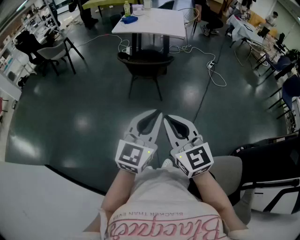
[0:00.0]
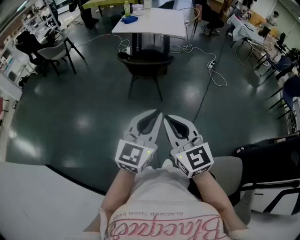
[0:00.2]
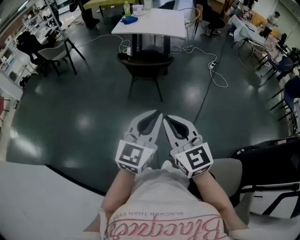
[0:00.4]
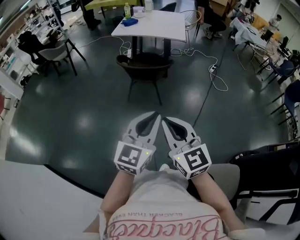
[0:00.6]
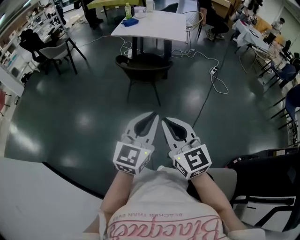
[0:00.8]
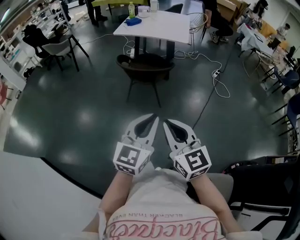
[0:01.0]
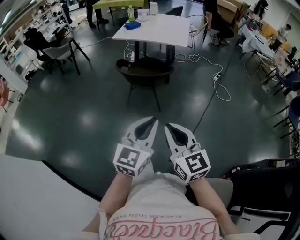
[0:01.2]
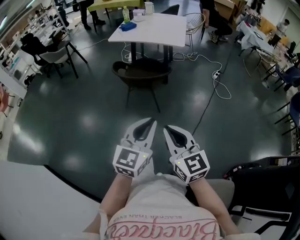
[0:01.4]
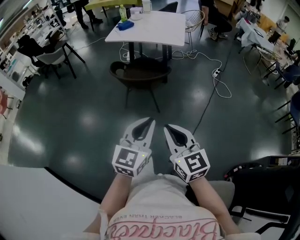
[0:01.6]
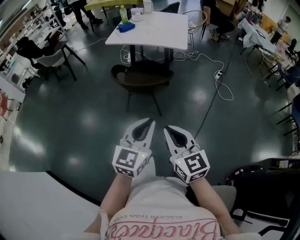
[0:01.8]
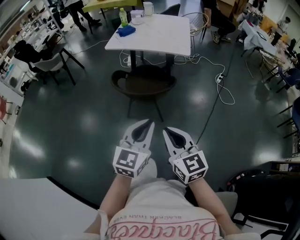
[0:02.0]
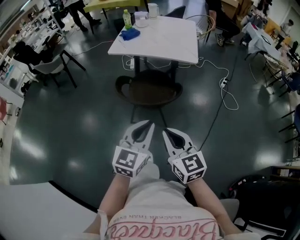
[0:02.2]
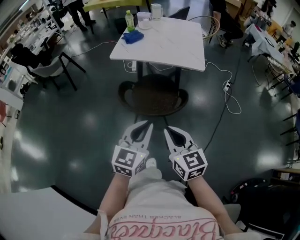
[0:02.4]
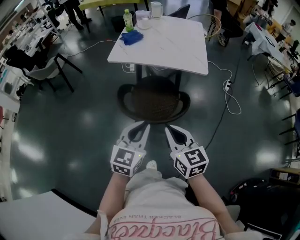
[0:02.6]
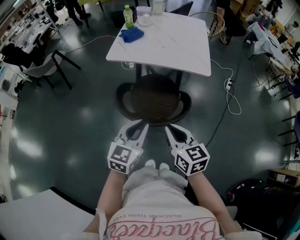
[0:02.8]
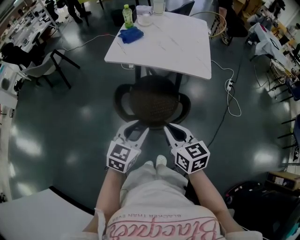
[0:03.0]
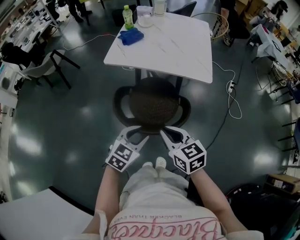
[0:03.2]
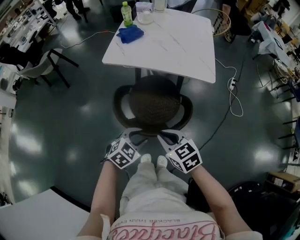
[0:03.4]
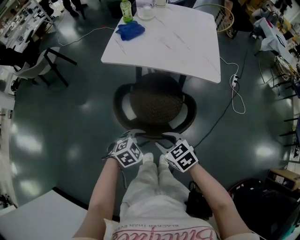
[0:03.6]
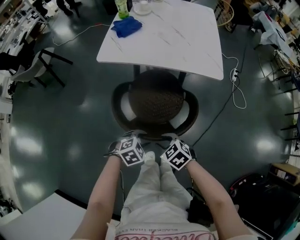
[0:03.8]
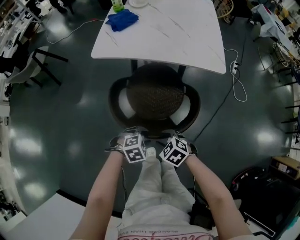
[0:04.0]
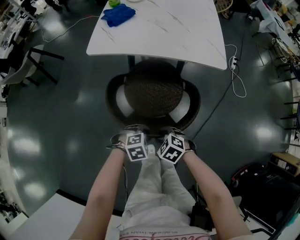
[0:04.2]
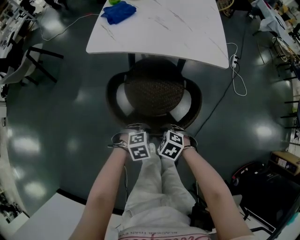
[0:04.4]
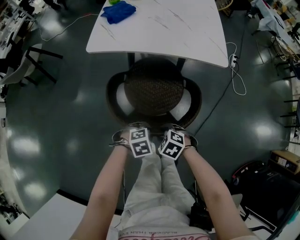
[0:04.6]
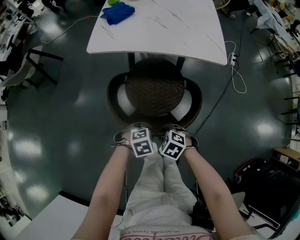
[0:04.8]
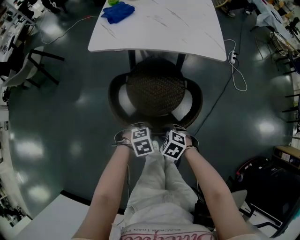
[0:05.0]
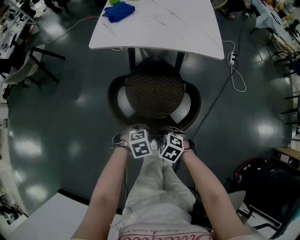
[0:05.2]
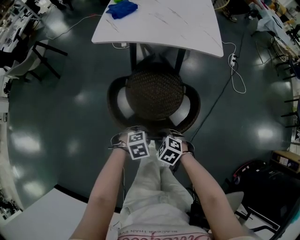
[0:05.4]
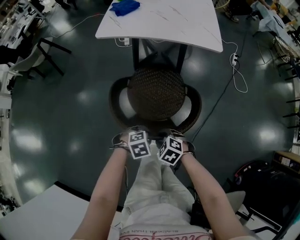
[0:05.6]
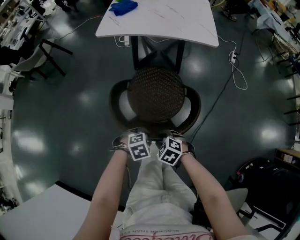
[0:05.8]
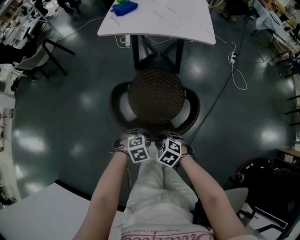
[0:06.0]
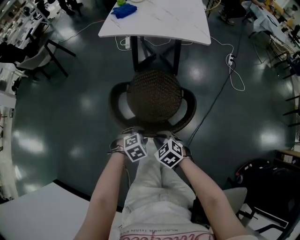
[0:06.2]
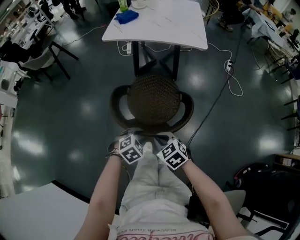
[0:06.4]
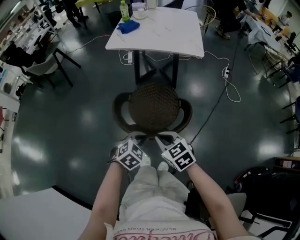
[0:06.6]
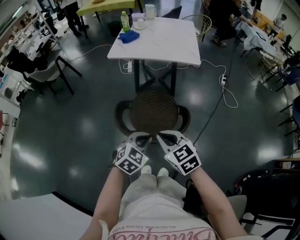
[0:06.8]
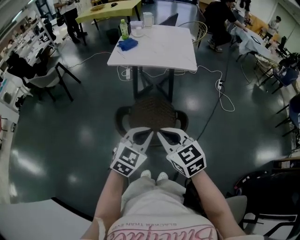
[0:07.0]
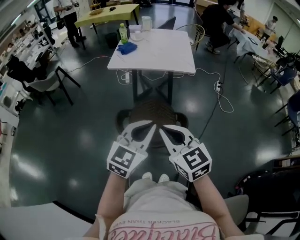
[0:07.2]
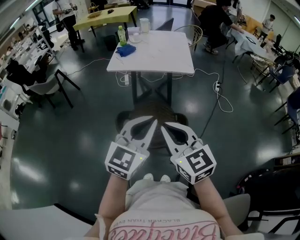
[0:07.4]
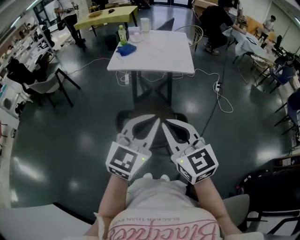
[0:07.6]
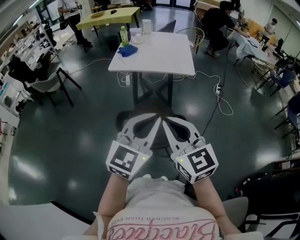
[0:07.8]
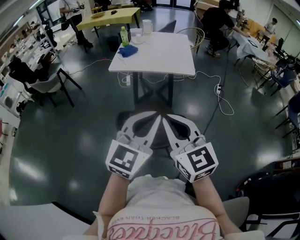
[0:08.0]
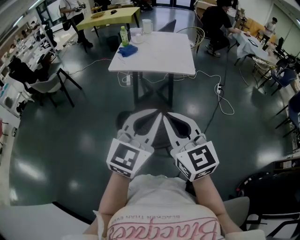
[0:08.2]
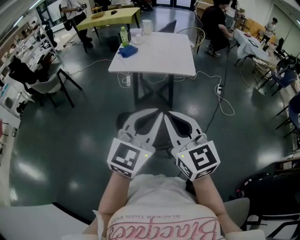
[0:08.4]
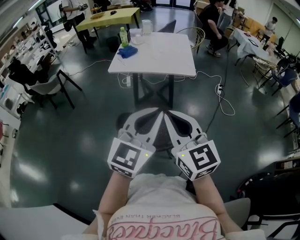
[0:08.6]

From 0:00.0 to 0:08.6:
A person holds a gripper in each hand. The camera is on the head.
From 0:00.0 to 0:01.4: The left gripper travels forward and to the right by roughly 15 cm. The right gripper goes roughly 20 cm to the right and forward.
From 0:01.4 to 0:02.8: Both grippers are carried forward, roughly 50 cm.
From 0:02.8 to 0:04.4: Both grippers move downward, some 30 cm. The left gripper angles its fingers downward, by some 50 degrees, and opens its fingers; the right gripper tips its fingers downward by about 50 degrees, and opens up.
From 0:04.4 to 0:05.8: The right gripper moves roughly 20 cm; the left gripper ends up about 20 cm from where it was.
From 0:05.8 to 0:07.2: The two grippers go roughly 40 cm upward. The right gripper tilts its fingers approximately 50 degrees upward, and closes. The left gripper angles its fingers upward, by some 60 degrees, and closes its fingers.
From 0:07.2 to 0:08.6: Both grippers travel together upward, some 10 cm.

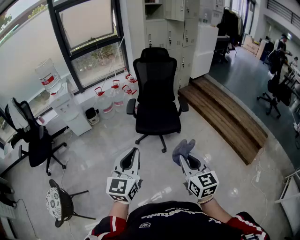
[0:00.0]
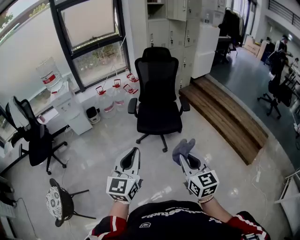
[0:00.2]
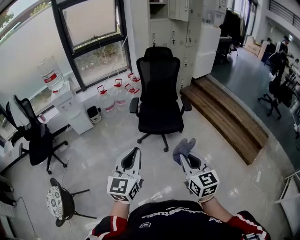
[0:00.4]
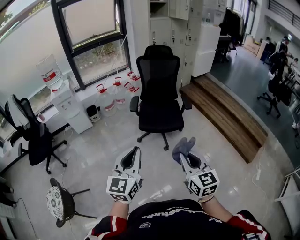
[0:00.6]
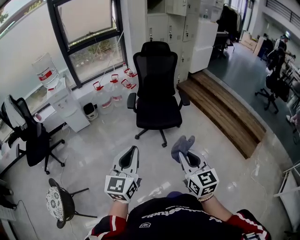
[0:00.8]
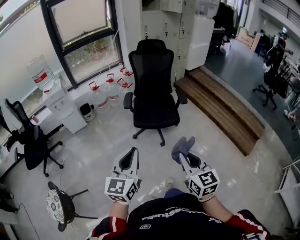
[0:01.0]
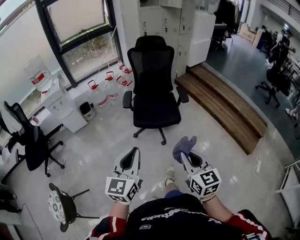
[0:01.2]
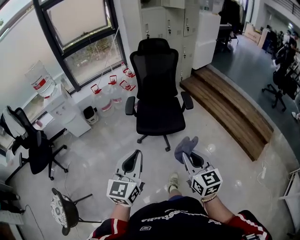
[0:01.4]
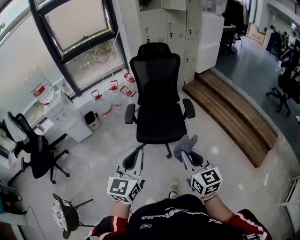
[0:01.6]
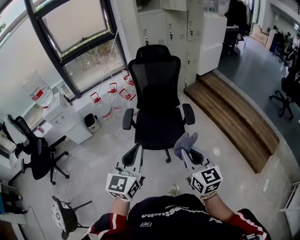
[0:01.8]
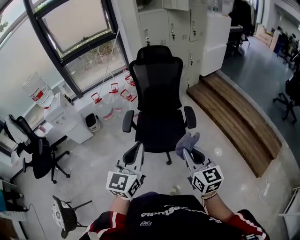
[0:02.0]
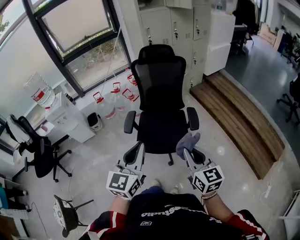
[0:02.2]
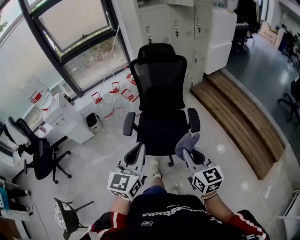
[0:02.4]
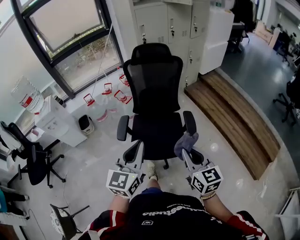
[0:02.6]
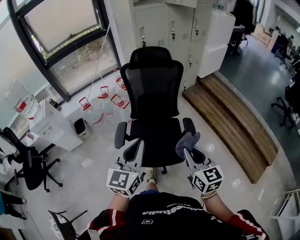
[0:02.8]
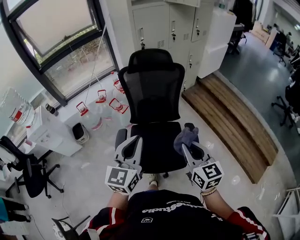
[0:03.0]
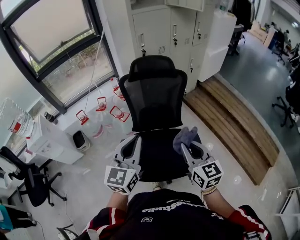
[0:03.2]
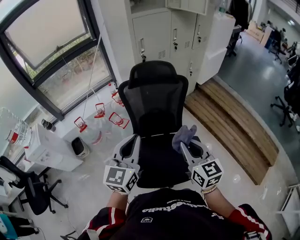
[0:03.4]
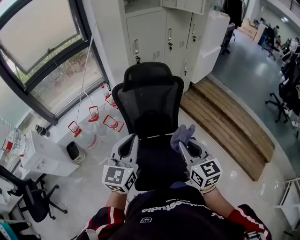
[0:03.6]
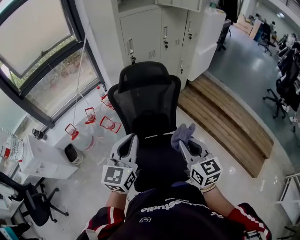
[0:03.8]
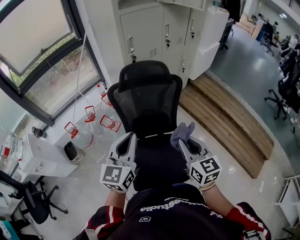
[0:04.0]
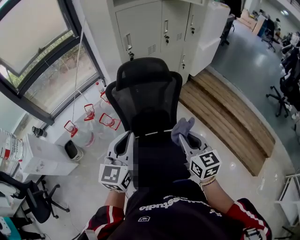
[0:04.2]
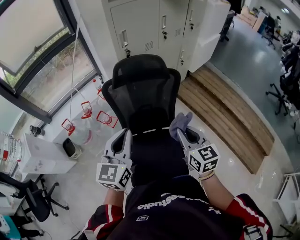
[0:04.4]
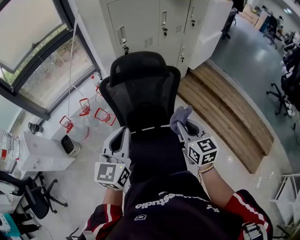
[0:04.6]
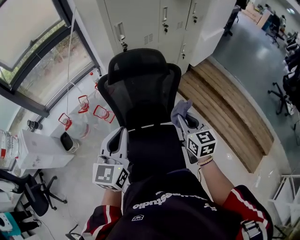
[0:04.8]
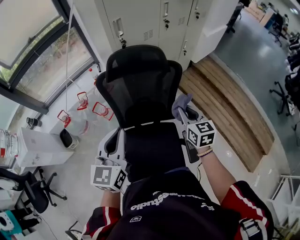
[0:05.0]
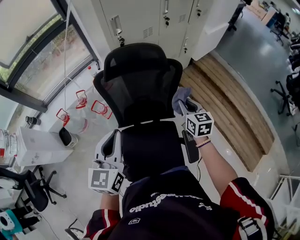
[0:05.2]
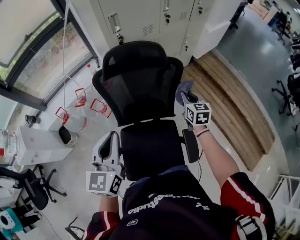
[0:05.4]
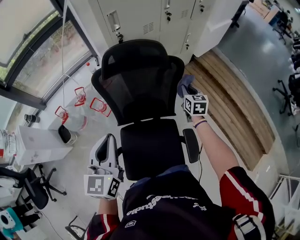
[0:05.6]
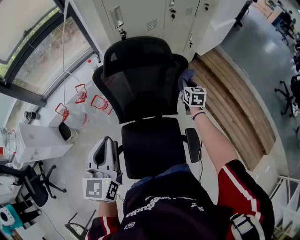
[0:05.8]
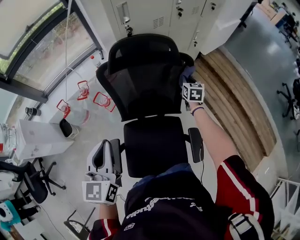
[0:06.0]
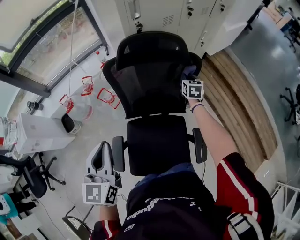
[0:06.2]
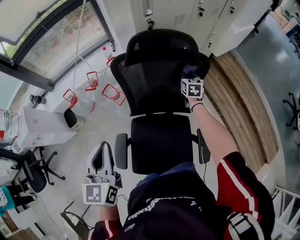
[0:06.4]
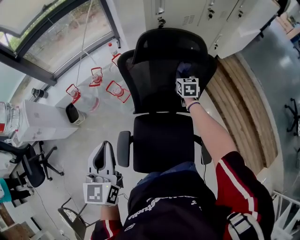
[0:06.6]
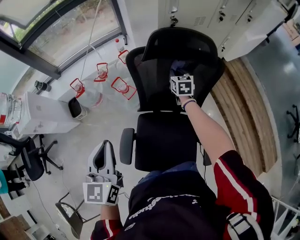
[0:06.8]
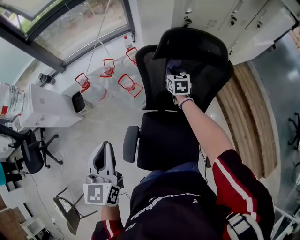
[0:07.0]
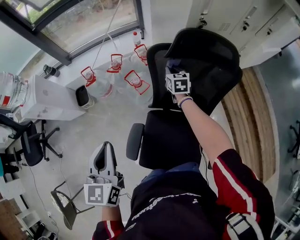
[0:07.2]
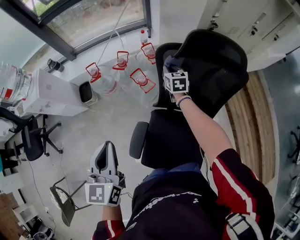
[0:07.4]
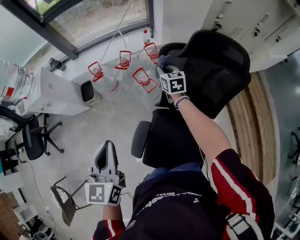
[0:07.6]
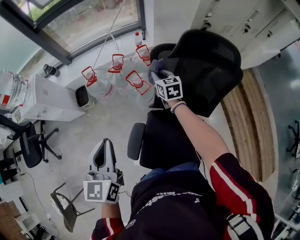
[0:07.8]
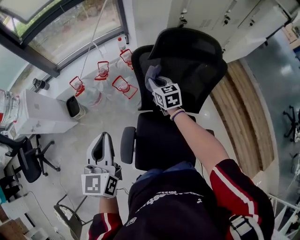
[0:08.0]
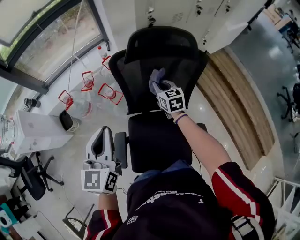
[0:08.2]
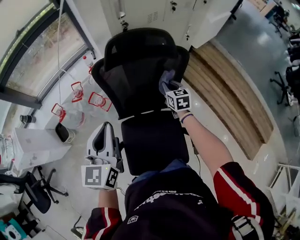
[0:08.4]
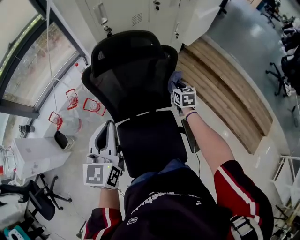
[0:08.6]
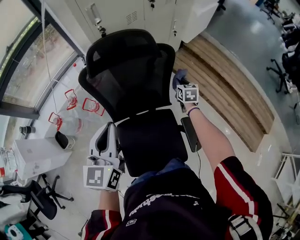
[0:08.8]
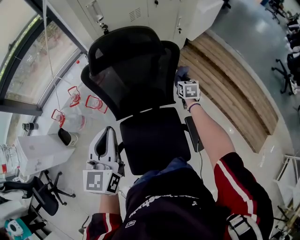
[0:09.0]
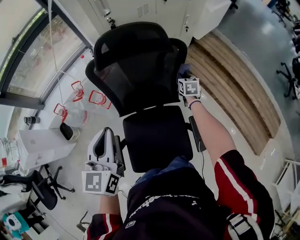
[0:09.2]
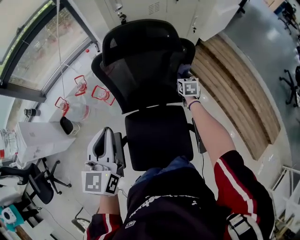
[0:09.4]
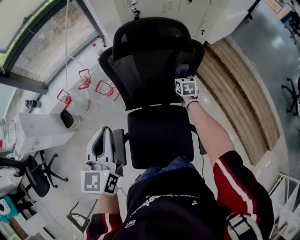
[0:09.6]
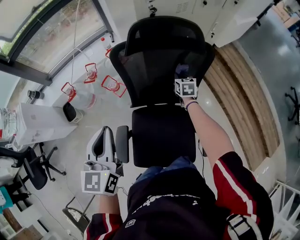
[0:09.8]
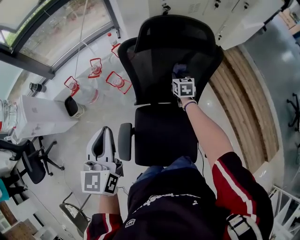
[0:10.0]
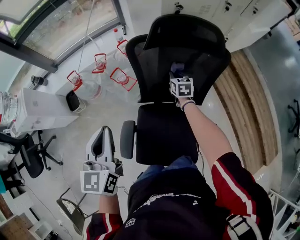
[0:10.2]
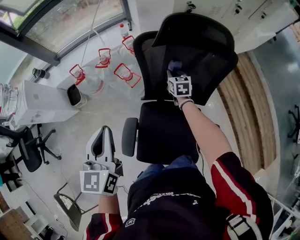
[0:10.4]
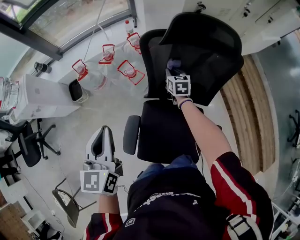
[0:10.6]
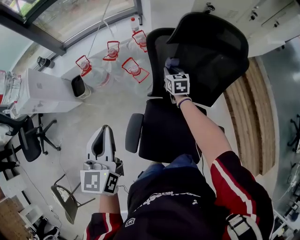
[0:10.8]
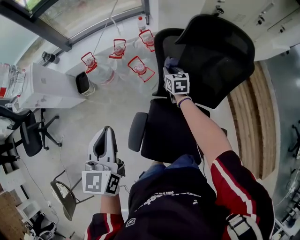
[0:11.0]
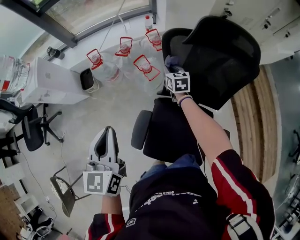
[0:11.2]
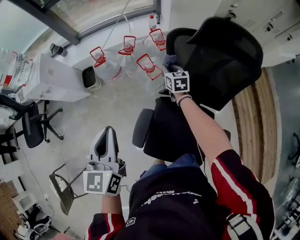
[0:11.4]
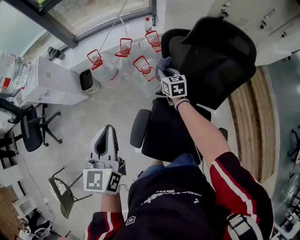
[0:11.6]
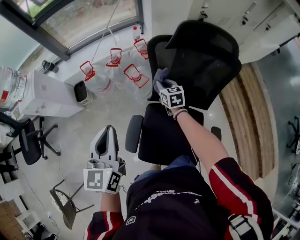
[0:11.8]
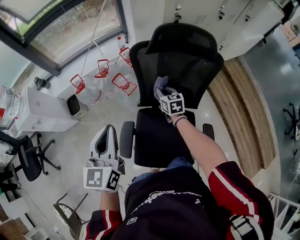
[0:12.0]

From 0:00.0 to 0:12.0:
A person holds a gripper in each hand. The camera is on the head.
From 0:00.0 to 0:01.6: The two grippers go roughly 20 cm forward.
From 0:01.6 to 0:03.0: The pair of grippers is taken forward, some 40 cm.
From 0:03.0 to 0:04.4: Both grippers travel together forward, roughly 25 cm.
From 0:04.4 to 0:06.0: The right gripper travels forward and downward by some 40 cm, and turns by some 20 degrees. The left gripper heads downward and to the left, covering roughly 10 cm.
From 0:06.0 to 0:07.6: The right gripper moves roughly 50 cm, and changes its angle by approximately 40 degrees. Meanwhile the left gripper changes place by about 20 cm, and turns by some 20 degrees.
From 0:07.6 to 0:09.0: The left gripper moves some 30 cm, and rotates some 30 degrees. The right gripper changes place by some 50 cm, and turns by approximately 40 degrees.
From 0:09.0 to 0:10.4: The right gripper is displaced to the left by about 35 cm, and turns by some 20 degrees, while the left gripper is displaced to the left by some 20 cm, and rotates roughly 20 degrees.
From 0:10.4 to 0:12.0: The right gripper heads backward, covering about 10 cm, and moves about 15 cm to the left and comes back; the left gripper reaches some 10 cm to the left, then returns.

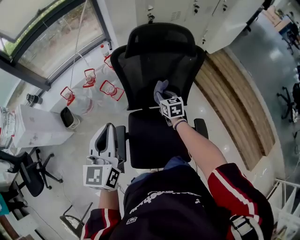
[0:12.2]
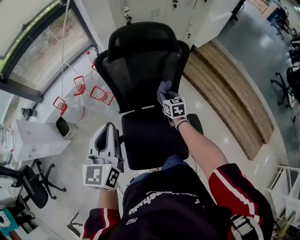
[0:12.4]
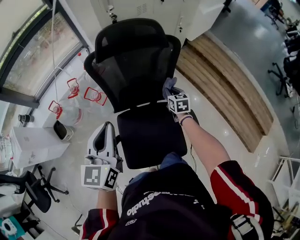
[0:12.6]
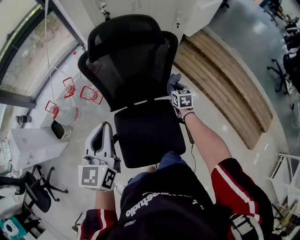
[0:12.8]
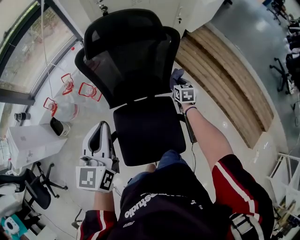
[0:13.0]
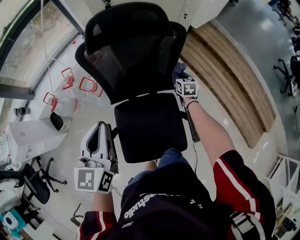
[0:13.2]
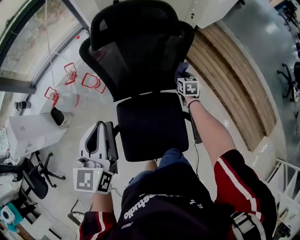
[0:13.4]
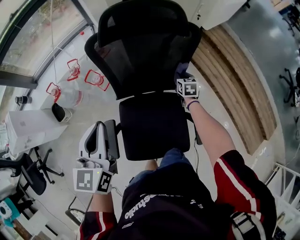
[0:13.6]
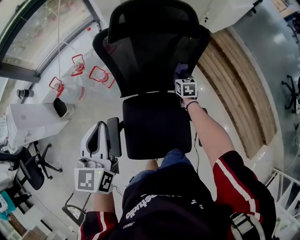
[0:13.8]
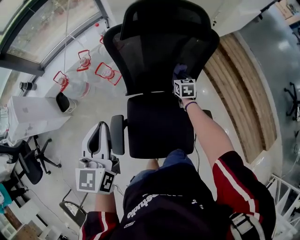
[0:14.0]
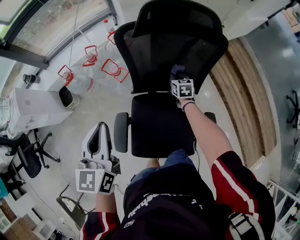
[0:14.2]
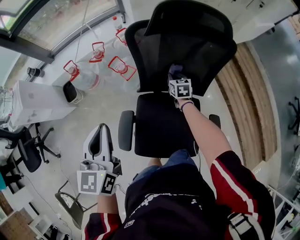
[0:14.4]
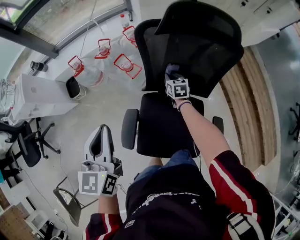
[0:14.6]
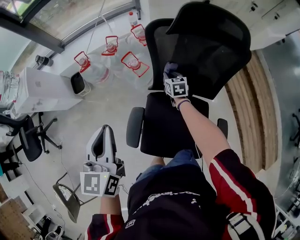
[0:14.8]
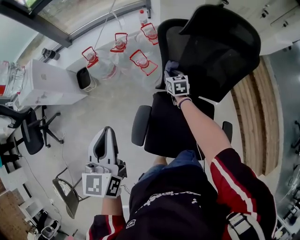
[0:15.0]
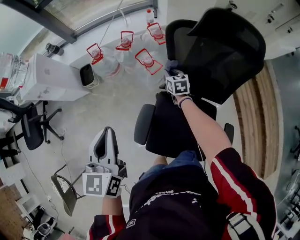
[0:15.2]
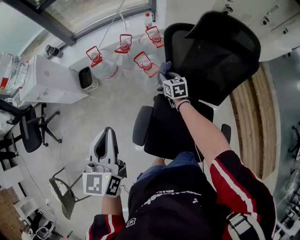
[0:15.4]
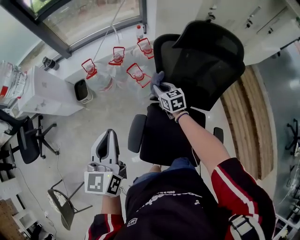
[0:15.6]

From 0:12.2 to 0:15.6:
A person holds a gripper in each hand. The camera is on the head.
From 0:12.2 to 0:13.8: The left gripper travels downward by about 5 cm, and reaches about 10 cm to the right, then returns. Meanwhile the right gripper shifts some 20 cm to the right, downward and forward.
From 0:13.8 to 0:15.6: The right gripper ends up about 40 cm from where it was, and turns by approximately 40 degrees. The left gripper ends up roughly 20 cm from where it was.
